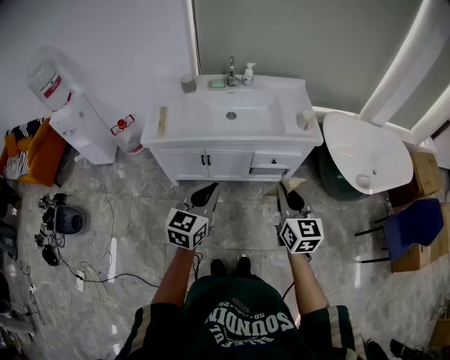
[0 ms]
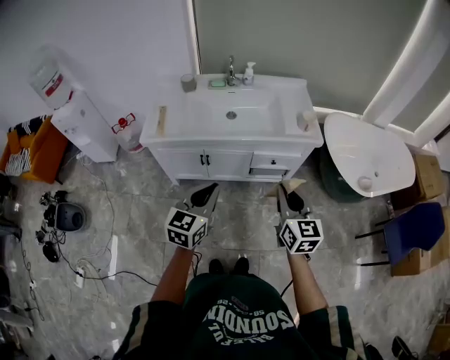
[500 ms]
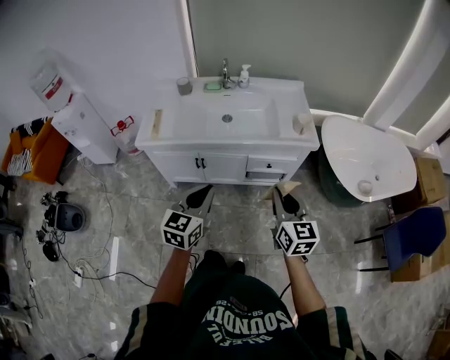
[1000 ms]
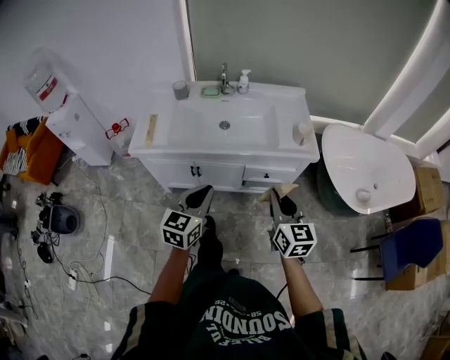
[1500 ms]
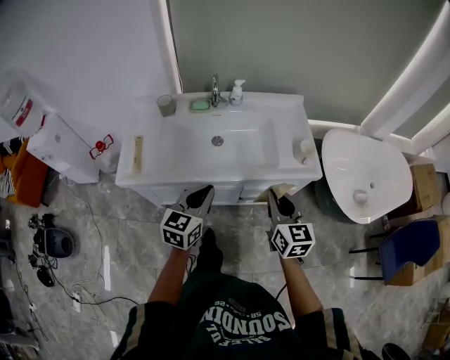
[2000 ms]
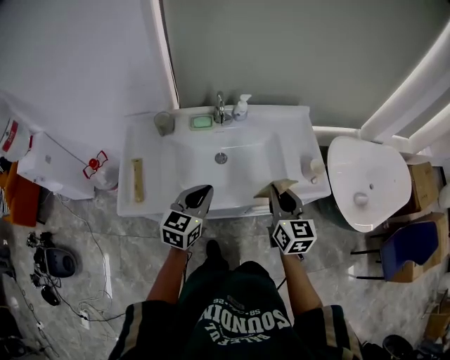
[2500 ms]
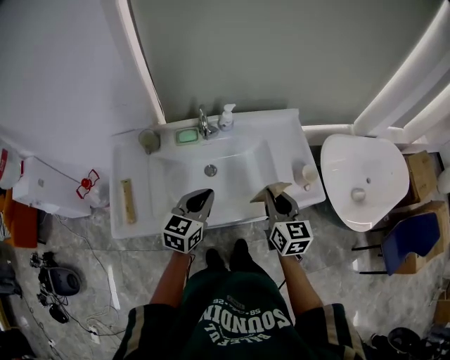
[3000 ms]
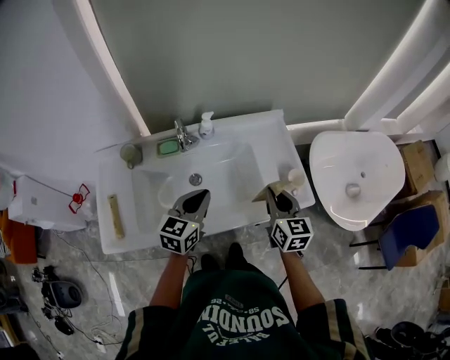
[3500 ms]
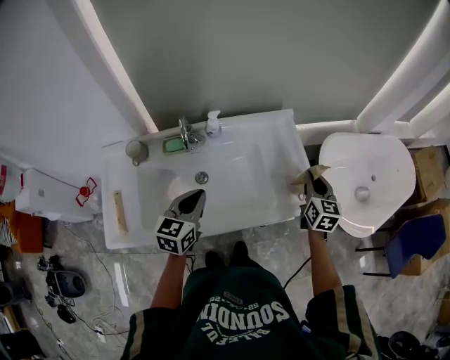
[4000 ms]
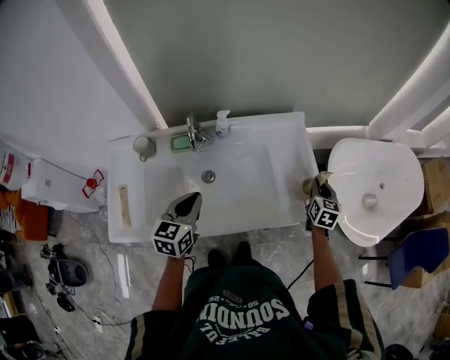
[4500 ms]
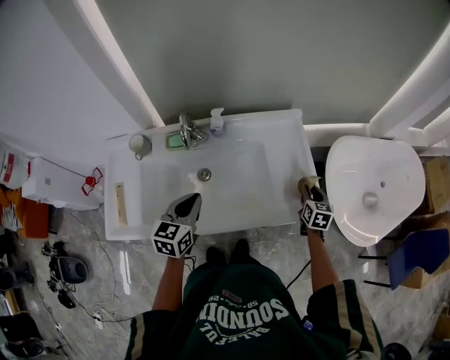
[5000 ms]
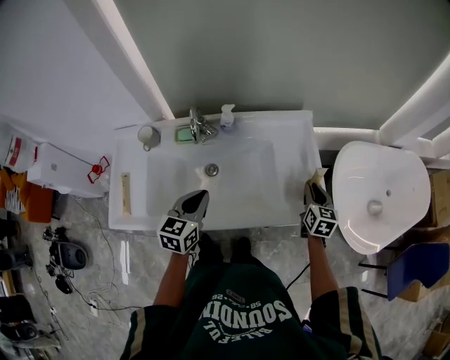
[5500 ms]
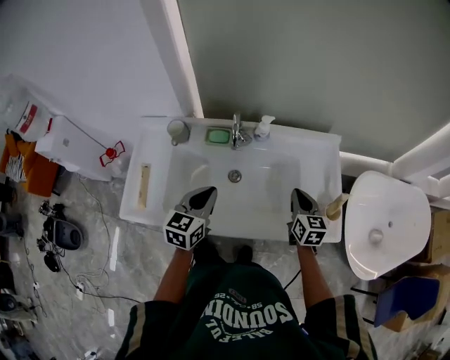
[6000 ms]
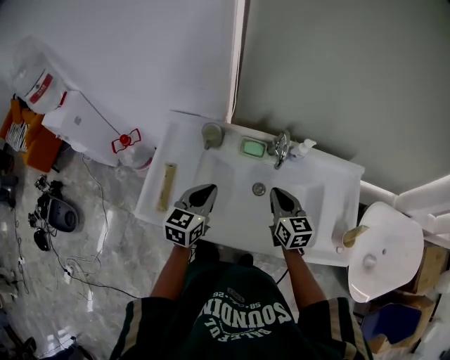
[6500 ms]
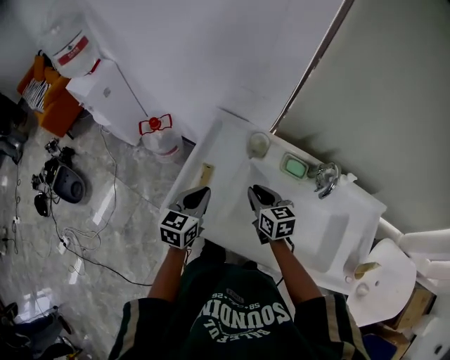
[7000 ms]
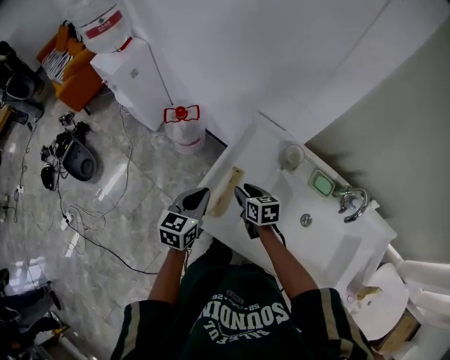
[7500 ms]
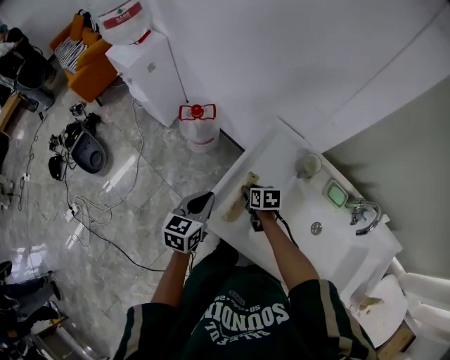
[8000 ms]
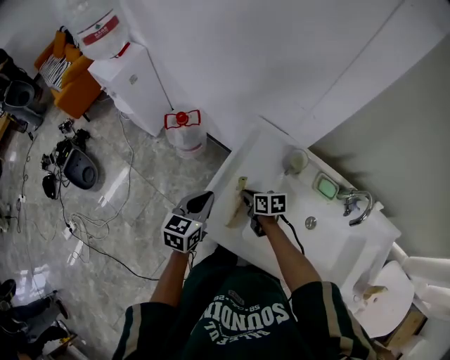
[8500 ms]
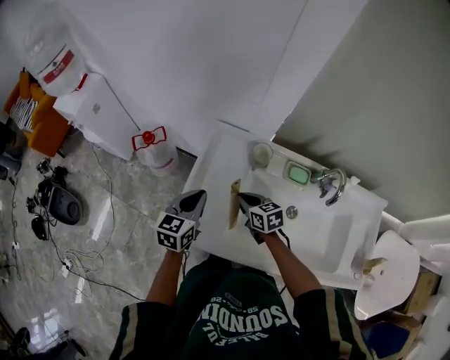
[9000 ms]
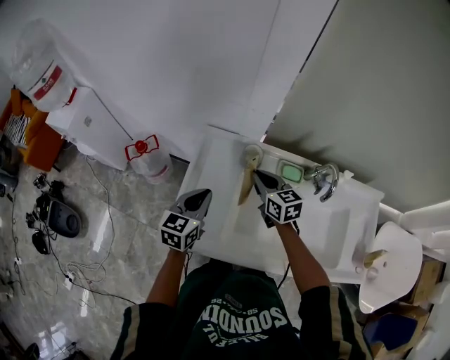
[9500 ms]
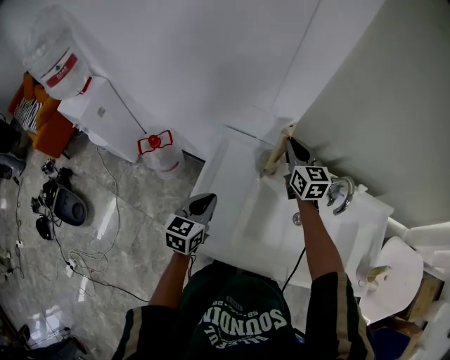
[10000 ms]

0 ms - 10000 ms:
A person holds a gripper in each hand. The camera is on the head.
0 ms - 2000 ms: The grippers both shift forward by about 25 cm.
2000 ms - 4000 ms: The right gripper moves forward and to the right, about 35 cm, and changes its angle by approximately 20 degrees, while the left gripper travels forward by roughly 25 cm.
4000 ms - 6000 ms: The left gripper is displaced to the left by about 10 cm. The right gripper shifts some 20 cm to the left, and changes its angle by some 20 degrees.
6000 ms - 8000 ms: The two grippers travel together, roughly 50 cm. The right gripper rotates approximately 60 degrees, and opens up, while the left gripper swivels roughly 30 degrees.
8000 ms - 10000 ms: The right gripper shifts by some 40 cm, points its fingers about 40 degrees further upward, and closes its fingers. Meanwhile the left gripper moves roughly 15 cm.

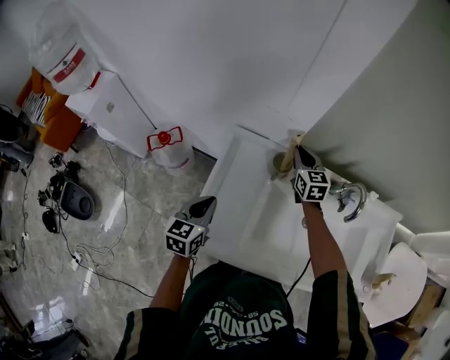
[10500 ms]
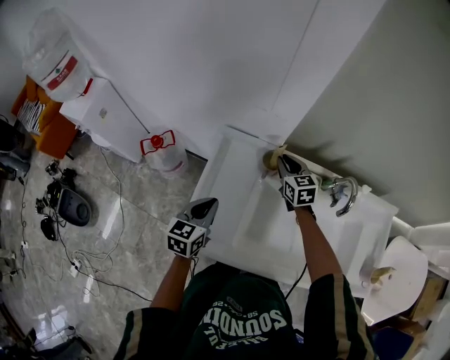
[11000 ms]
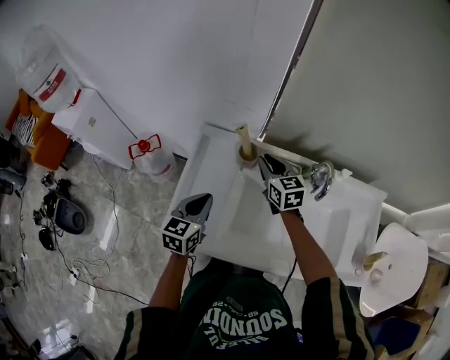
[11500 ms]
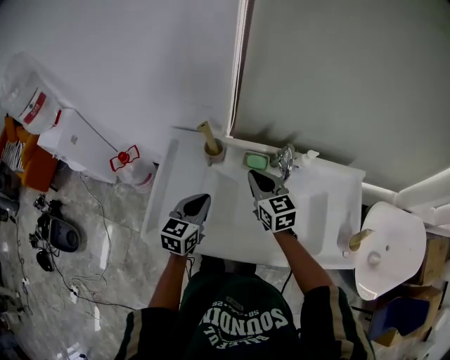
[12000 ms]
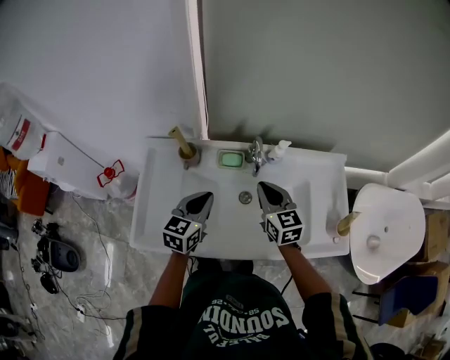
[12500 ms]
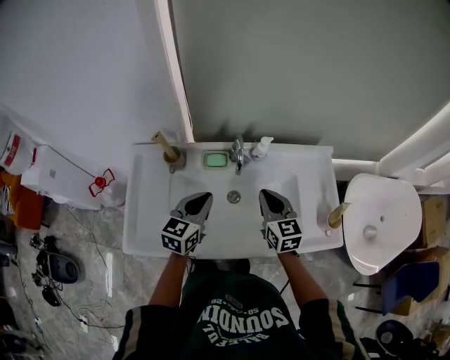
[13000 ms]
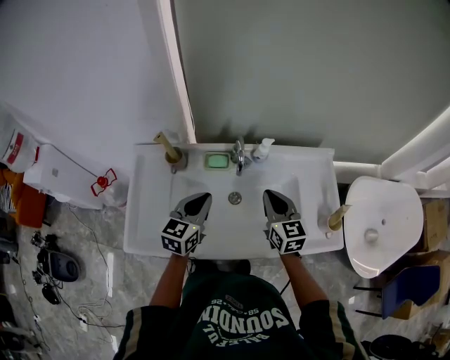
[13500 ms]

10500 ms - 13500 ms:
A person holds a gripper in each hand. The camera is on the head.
10500 ms - 12000 ms: The right gripper is displaced backward and to the right by roughly 20 cm; the left gripper is displaced to the right by about 20 cm.
12000 ms - 13500 ms: Both grippers travel together to the right, some 15 cm.

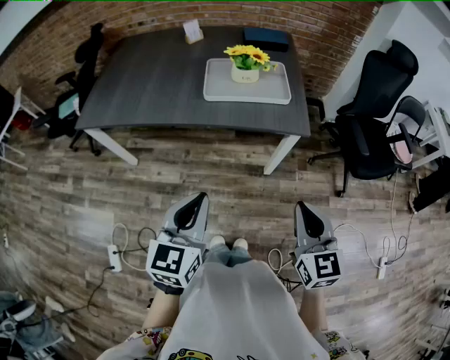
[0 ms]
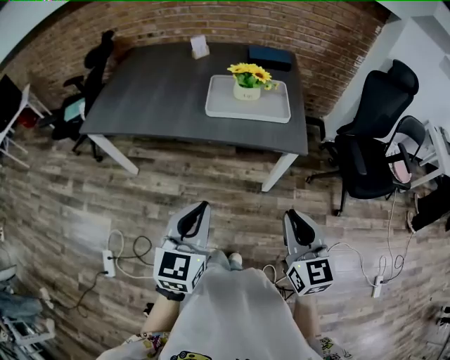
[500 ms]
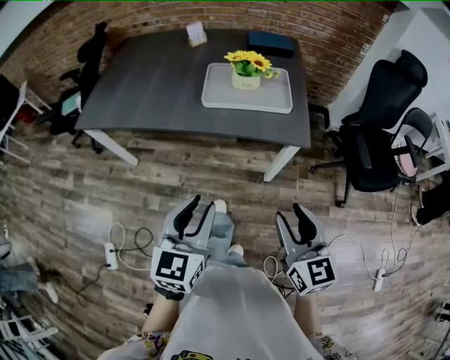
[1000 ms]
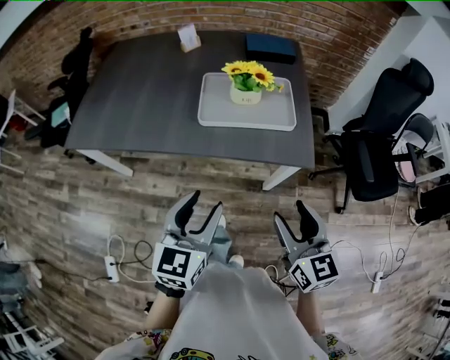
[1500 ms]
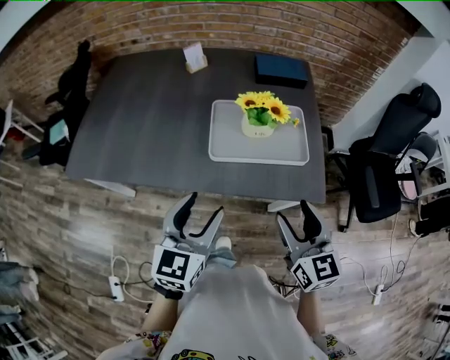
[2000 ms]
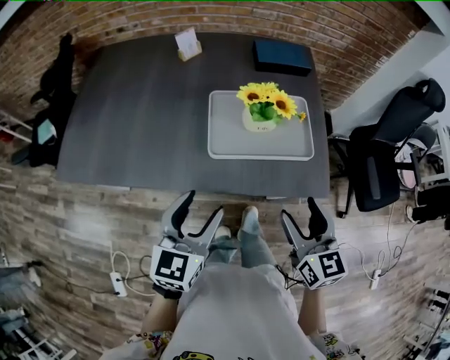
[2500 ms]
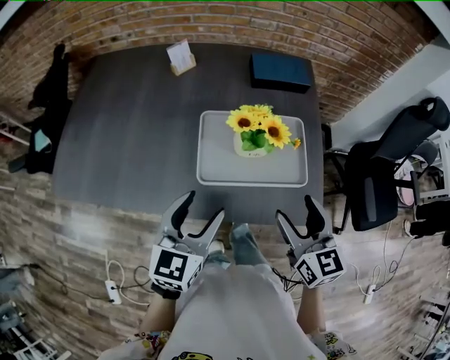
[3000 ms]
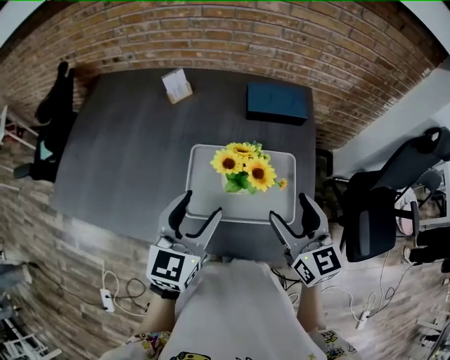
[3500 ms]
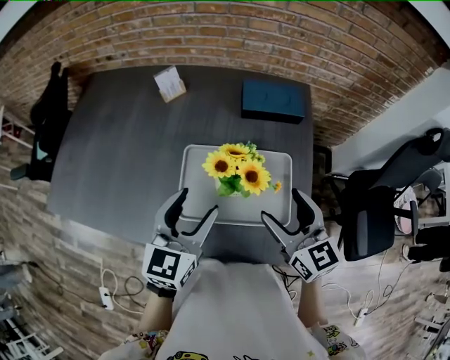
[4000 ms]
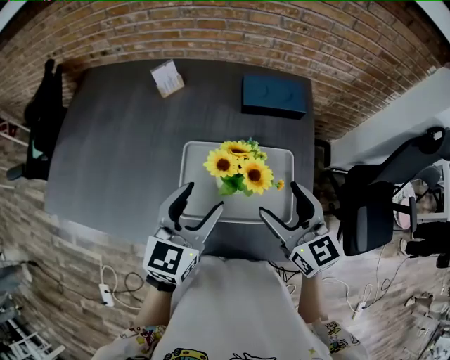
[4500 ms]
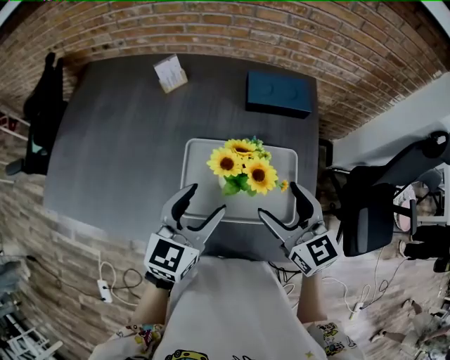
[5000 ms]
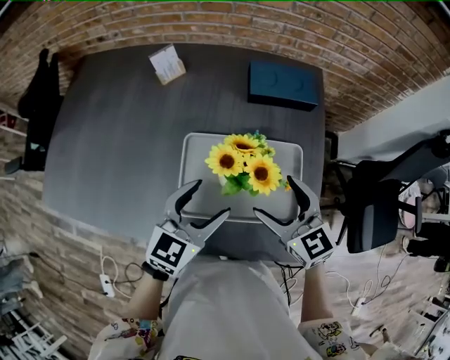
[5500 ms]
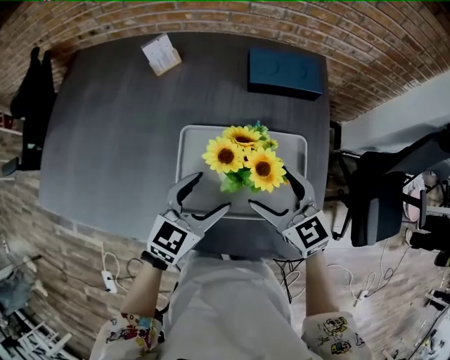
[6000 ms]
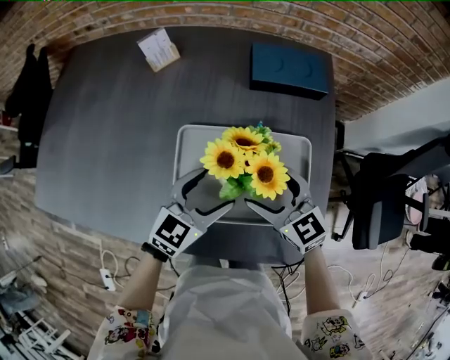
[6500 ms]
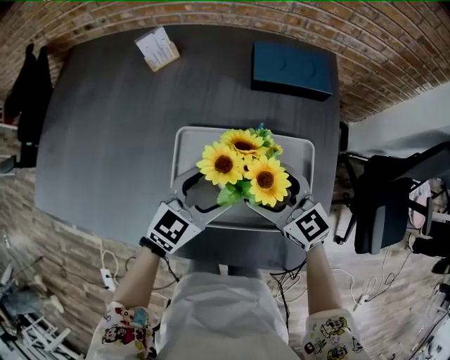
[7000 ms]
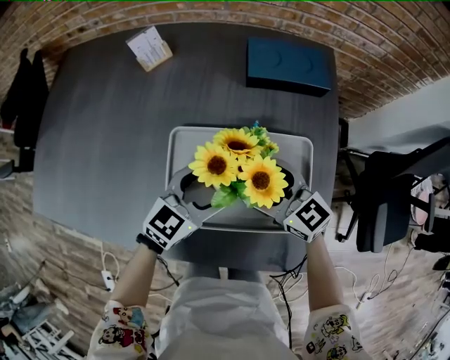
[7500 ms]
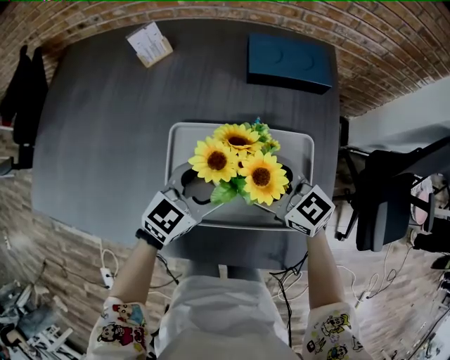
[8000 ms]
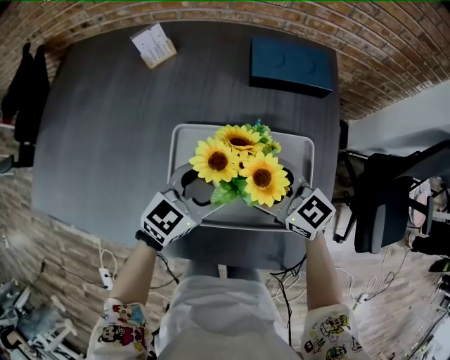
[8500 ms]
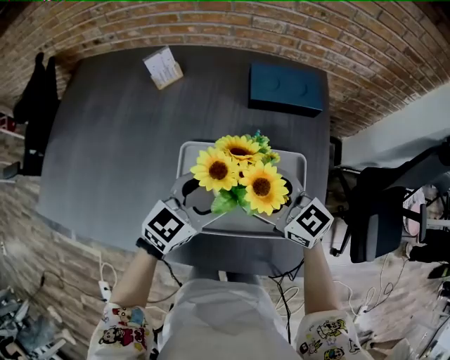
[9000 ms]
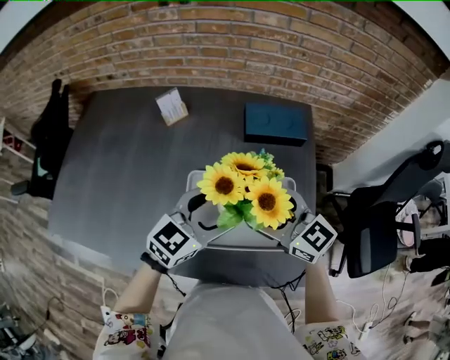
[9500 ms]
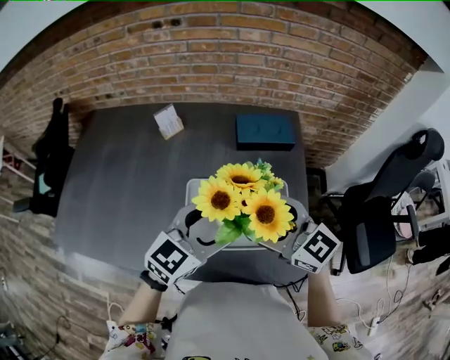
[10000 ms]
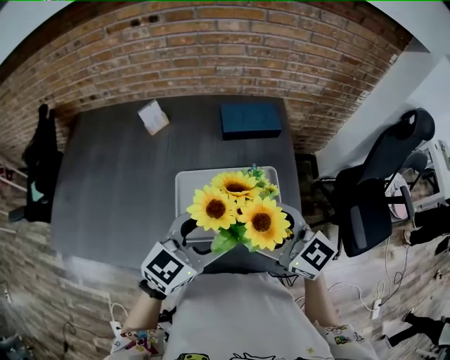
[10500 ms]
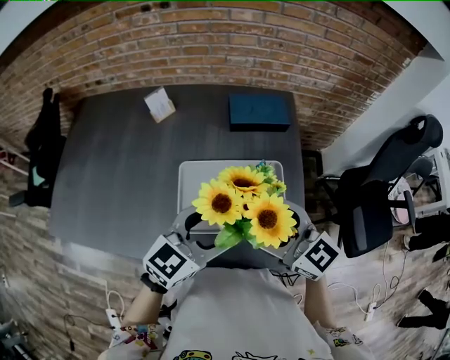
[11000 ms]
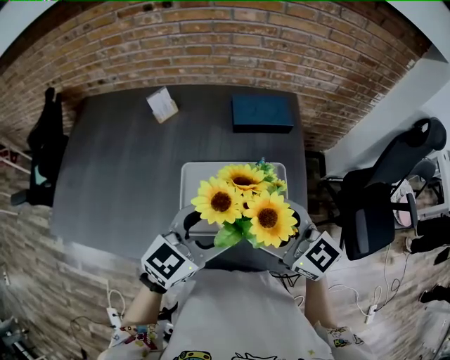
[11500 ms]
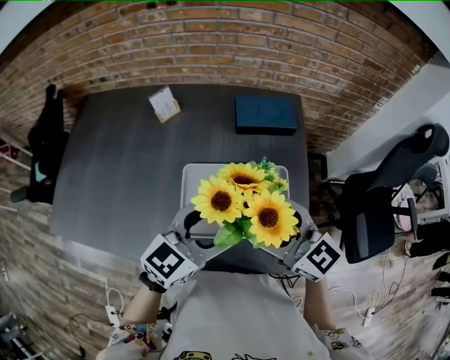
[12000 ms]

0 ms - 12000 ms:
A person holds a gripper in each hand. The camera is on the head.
0 ms - 2000 ms: The grippers both shift forward by about 25 cm. The left gripper opens its fingers. Meanwhile the right gripper opens up.
2000 ms - 4000 ms: The grippers both shift forward by about 25 cm.
4000 ms - 6000 ms: The two grippers go approximately 10 cm downward. The left gripper turns by about 20 degrees.
6000 ms - 8000 ms: The right gripper moves approximately 5 cm. The left gripper goes some 5 cm downward.
8000 ms - 10000 ms: Both grippers travel together upward, about 20 cm.
10000 ms - 12000 ms: There are only small adjustments of the grippers.

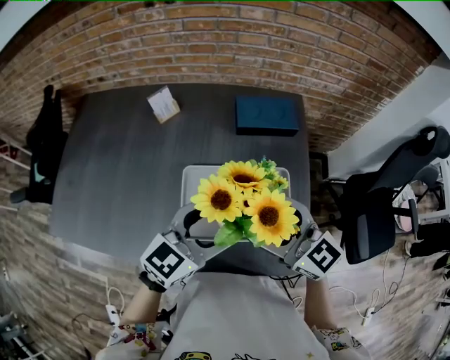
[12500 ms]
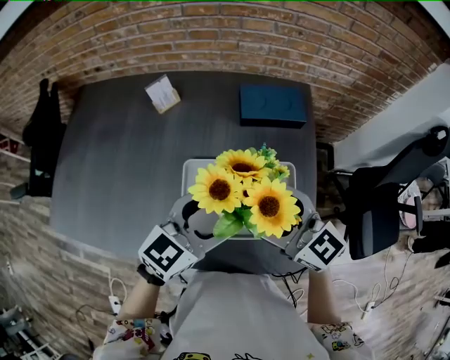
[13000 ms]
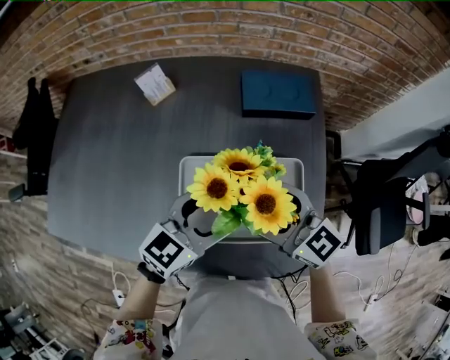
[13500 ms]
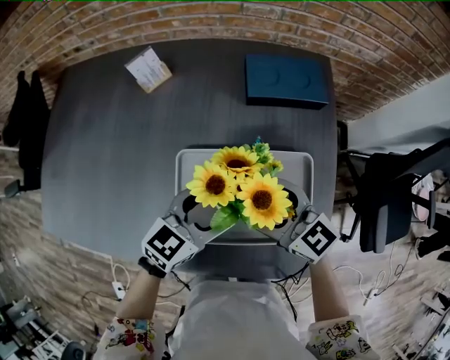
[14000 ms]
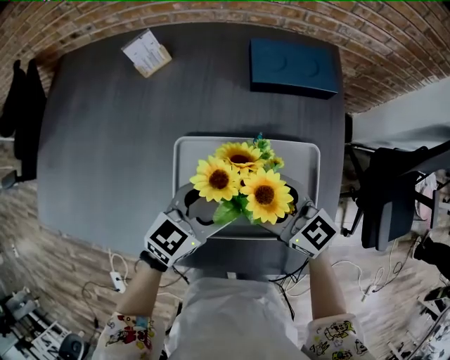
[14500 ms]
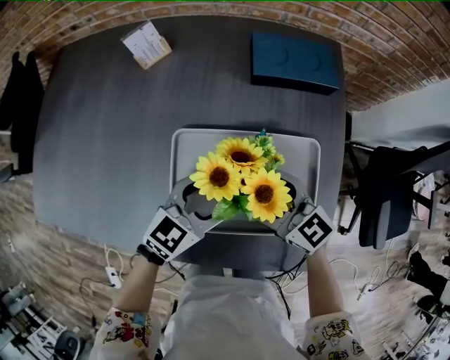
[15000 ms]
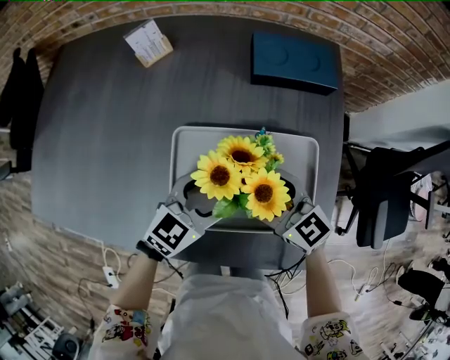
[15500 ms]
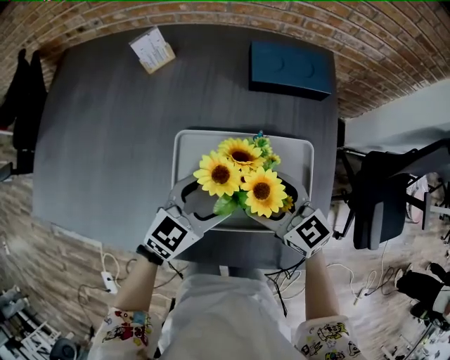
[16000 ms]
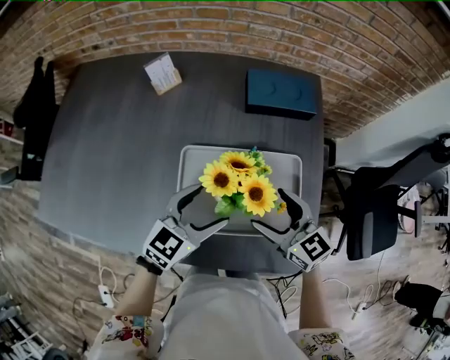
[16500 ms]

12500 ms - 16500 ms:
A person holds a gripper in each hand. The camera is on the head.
12500 ms - 14500 ms: The two grippers go about 15 cm downward.
14500 ms - 16500 ms: The right gripper moves approximately 5 cm, while the left gripper changes place by roughly 5 cm.
